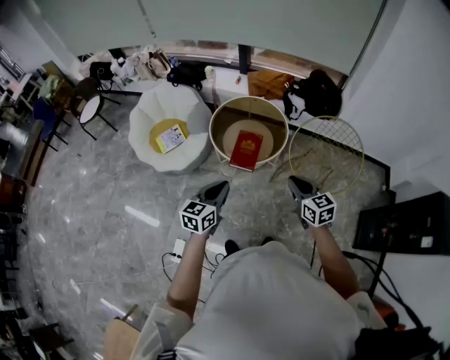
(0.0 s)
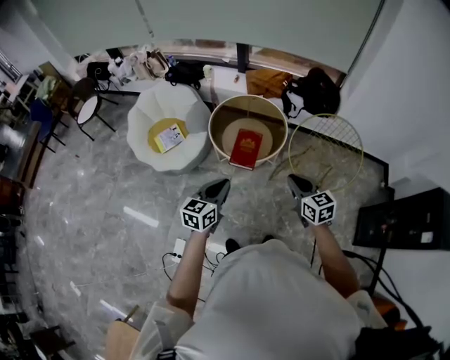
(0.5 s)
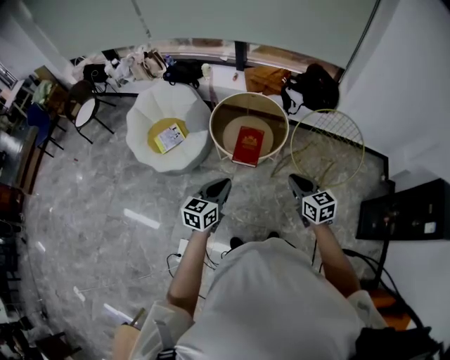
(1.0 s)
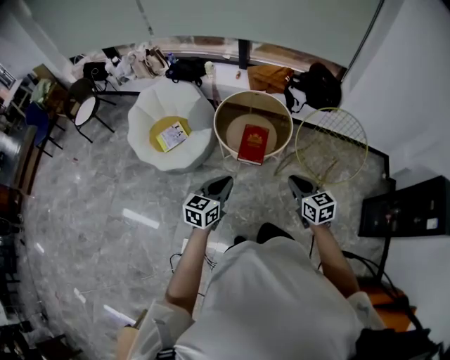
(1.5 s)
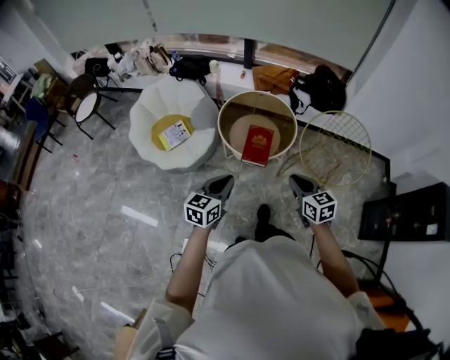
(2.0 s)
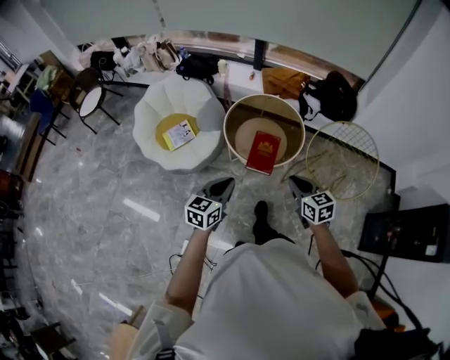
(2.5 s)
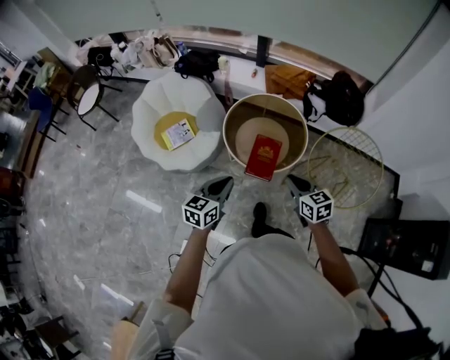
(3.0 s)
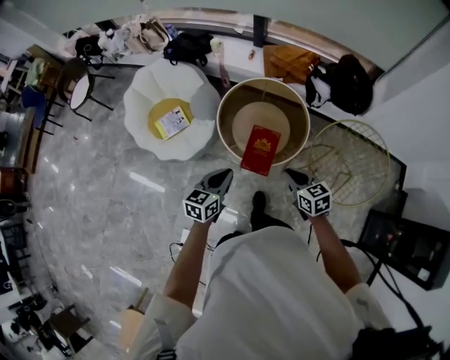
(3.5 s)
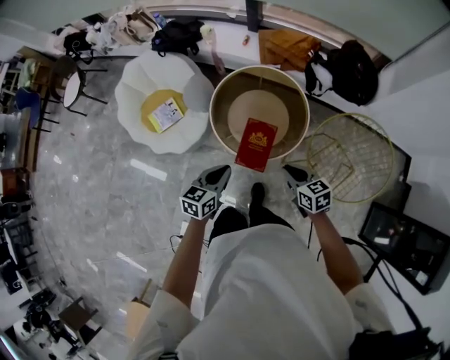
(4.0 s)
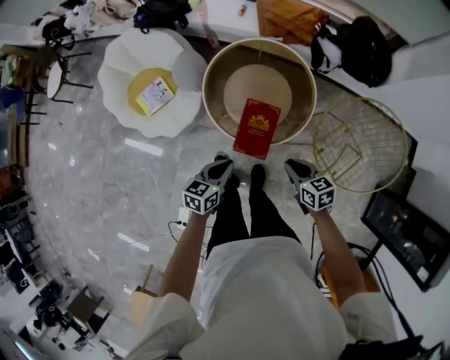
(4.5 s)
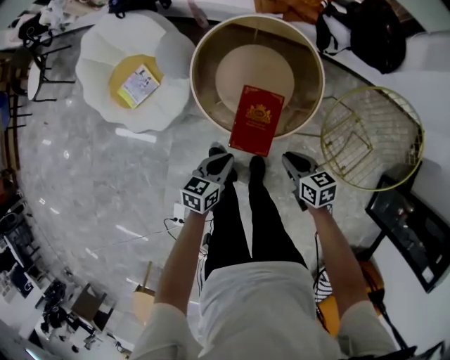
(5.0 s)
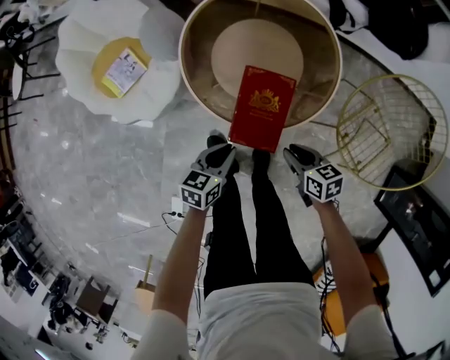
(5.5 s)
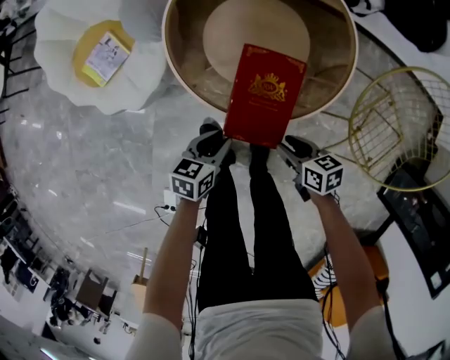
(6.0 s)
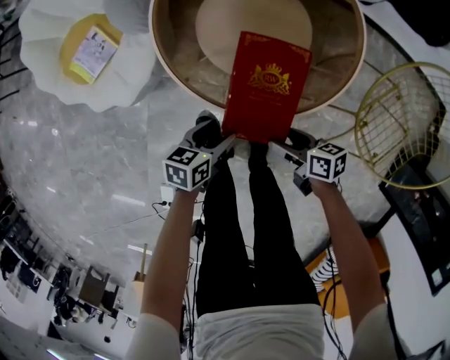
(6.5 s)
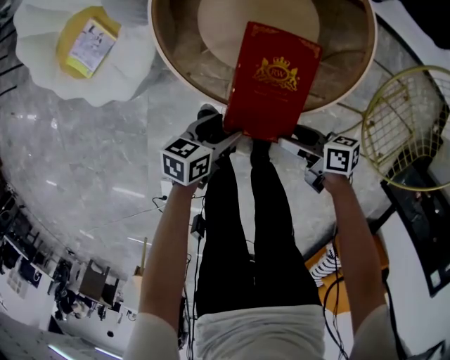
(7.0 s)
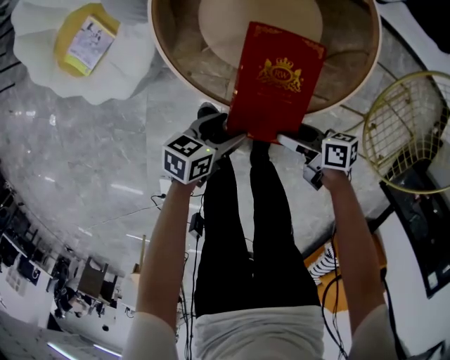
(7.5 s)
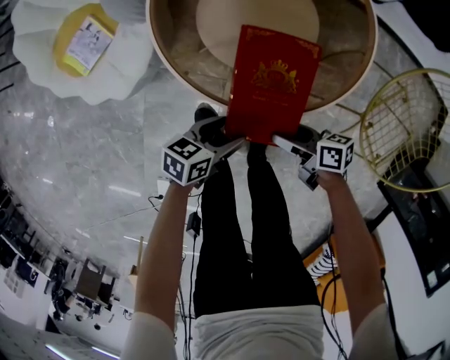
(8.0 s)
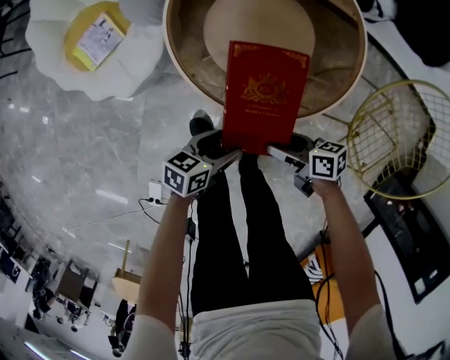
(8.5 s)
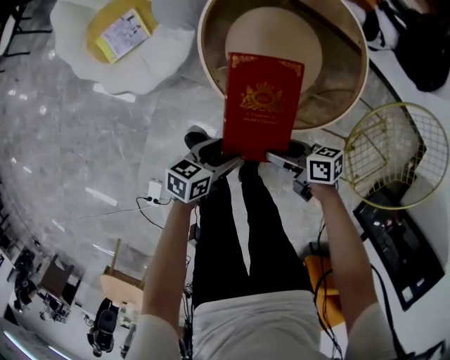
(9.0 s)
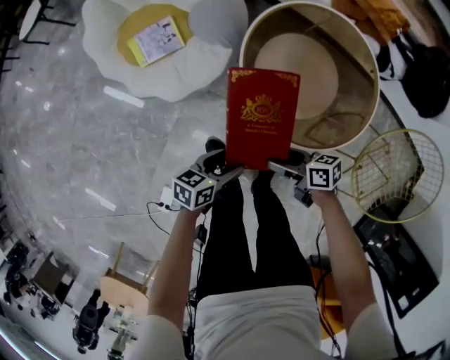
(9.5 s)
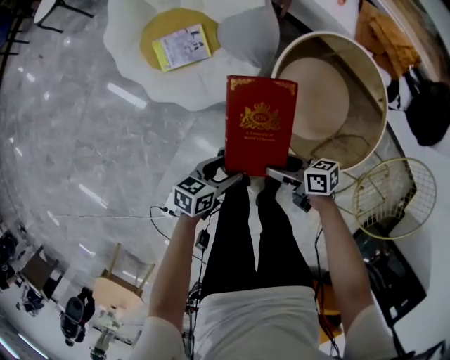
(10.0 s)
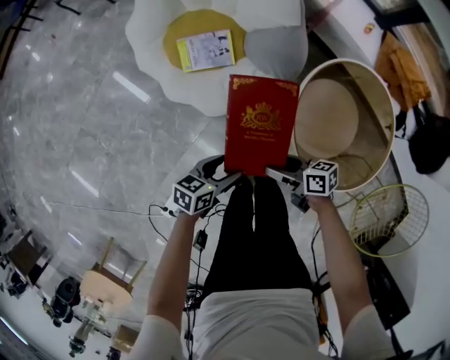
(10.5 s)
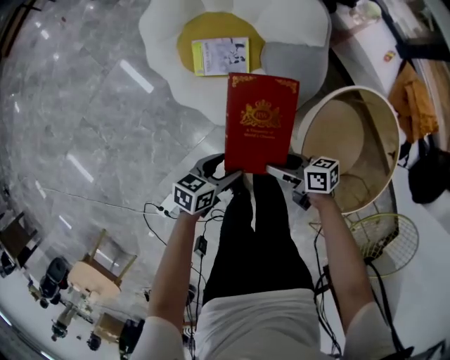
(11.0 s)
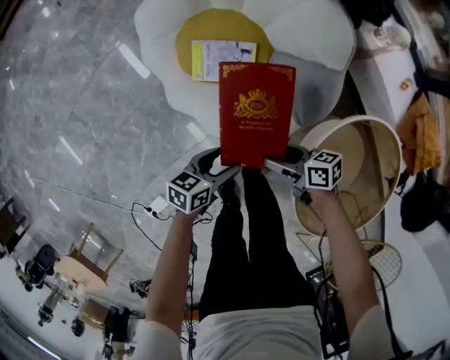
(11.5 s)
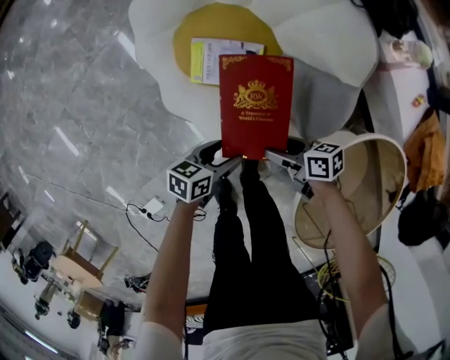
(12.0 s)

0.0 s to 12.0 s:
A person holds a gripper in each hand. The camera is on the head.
0.0 to 2.0 s: Both grippers travel together to the left, about 10 cm.
2.0 to 4.0 s: Both grippers travel together forward and downward, approximately 30 cm. The right gripper turns by about 20 degrees.
4.0 to 6.0 s: Both grippers move downward, some 40 cm. The left gripper turns by approximately 20 degrees, and opens; the right gripper swivels roughly 20 degrees, and opens up.
6.0 to 8.0 s: The left gripper changes place by about 5 cm, and opens, while the right gripper swivels roughly 20 degrees, and opens its fingers.
8.0 to 10.0 s: The left gripper shifts by approximately 30 cm, and swivels roughly 20 degrees, while the right gripper ends up some 30 cm from where it was, and changes its angle by some 30 degrees.
10.0 to 12.0 s: The right gripper shifts by roughly 35 cm, and changes its angle by some 20 degrees; the left gripper shifts by approximately 30 cm, and swivels about 20 degrees.

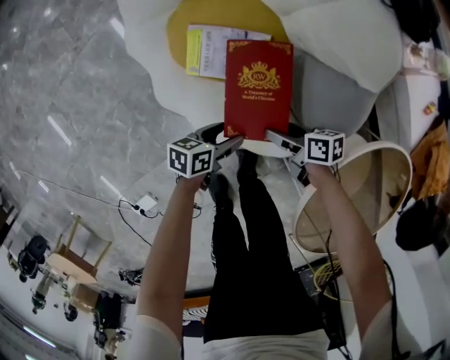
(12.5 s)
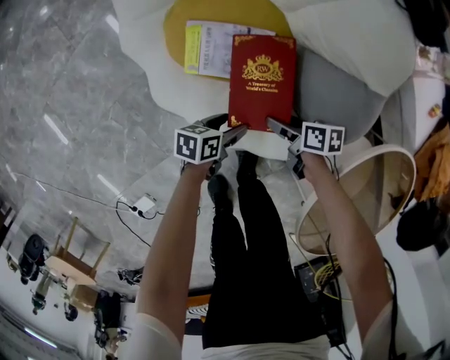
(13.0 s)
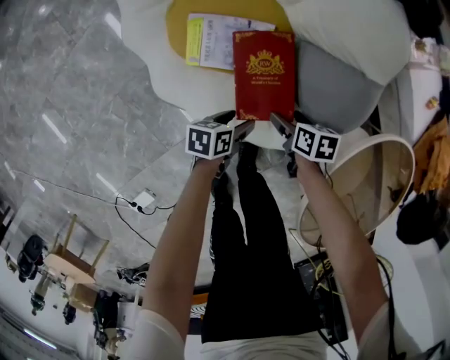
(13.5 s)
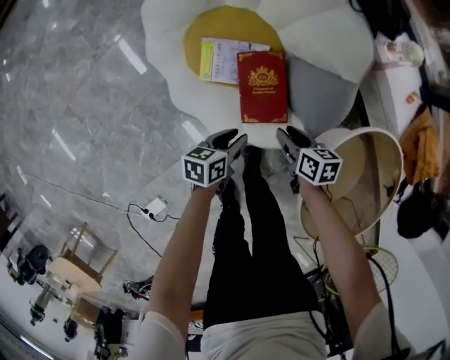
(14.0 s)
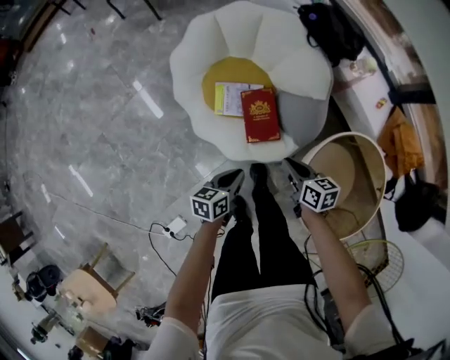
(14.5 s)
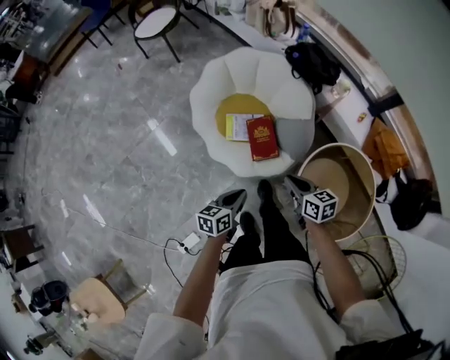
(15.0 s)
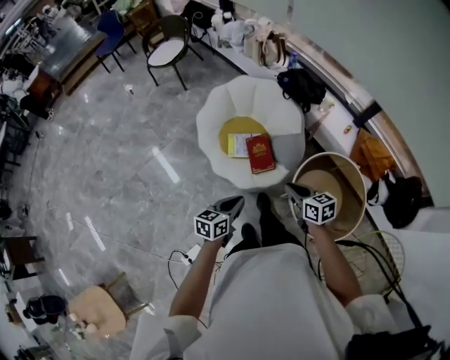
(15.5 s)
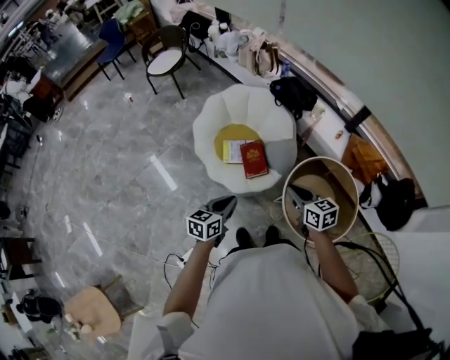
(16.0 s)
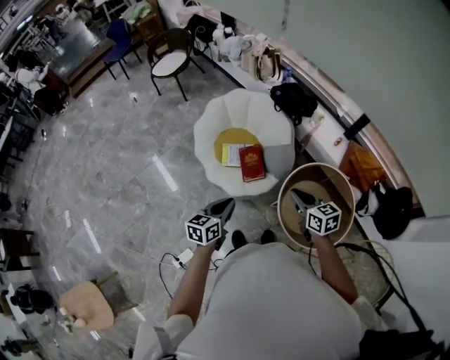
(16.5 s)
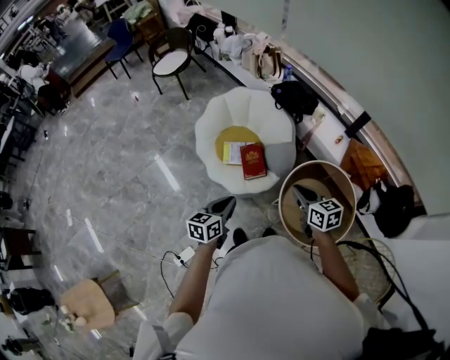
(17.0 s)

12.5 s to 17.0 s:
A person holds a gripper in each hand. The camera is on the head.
12.5 to 14.5 s: Both grippers move upward, some 30 cm. The right gripper turns by roughly 30 degrees, and closes up. The left gripper closes.
14.5 to 17.0 s: Both grippers move upward and backward, approximately 40 cm. The left gripper swivels some 20 degrees, while the right gripper turns by some 20 degrees.

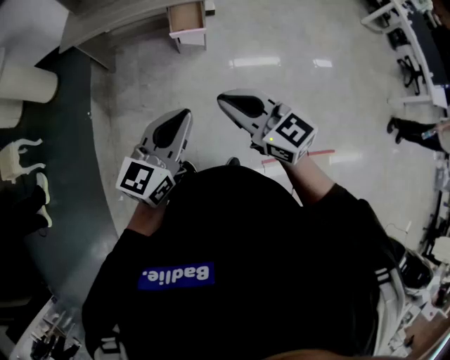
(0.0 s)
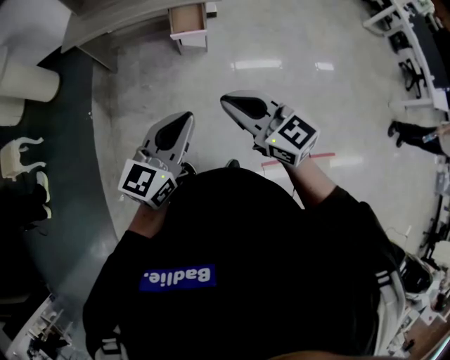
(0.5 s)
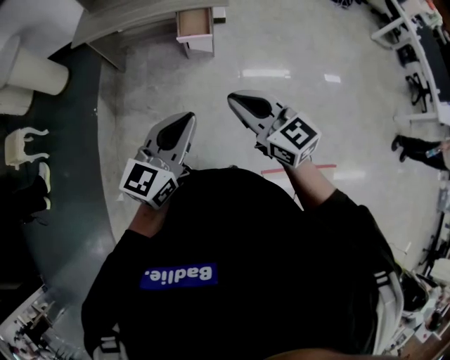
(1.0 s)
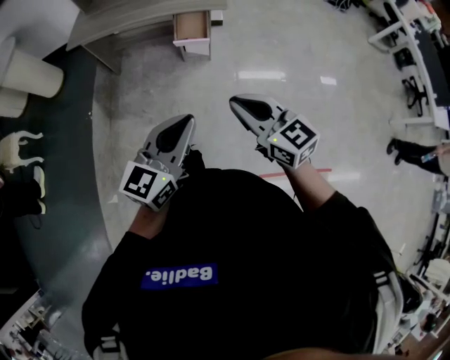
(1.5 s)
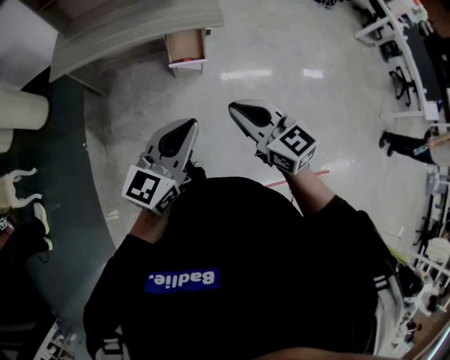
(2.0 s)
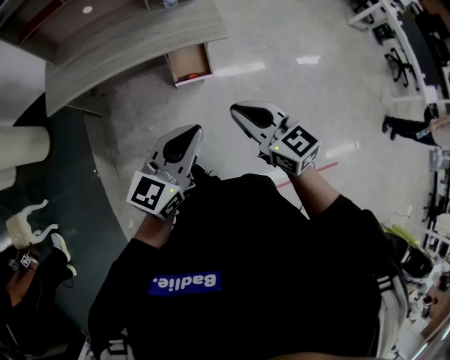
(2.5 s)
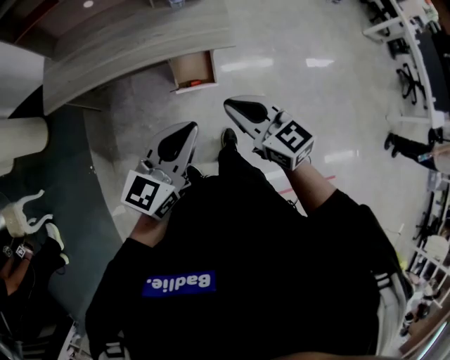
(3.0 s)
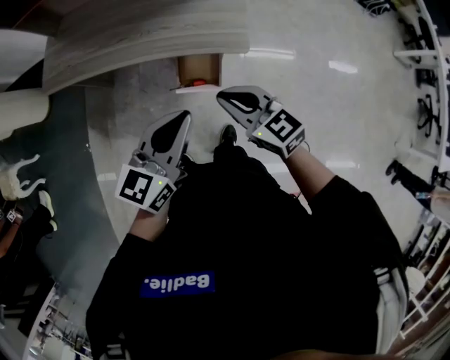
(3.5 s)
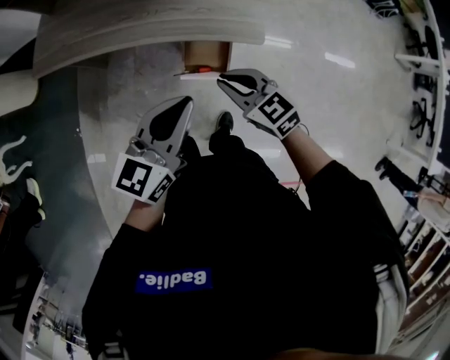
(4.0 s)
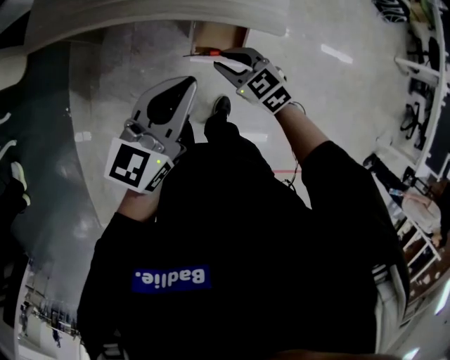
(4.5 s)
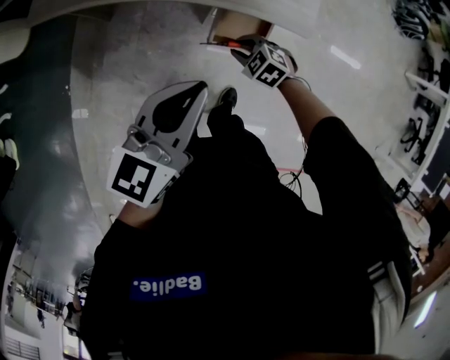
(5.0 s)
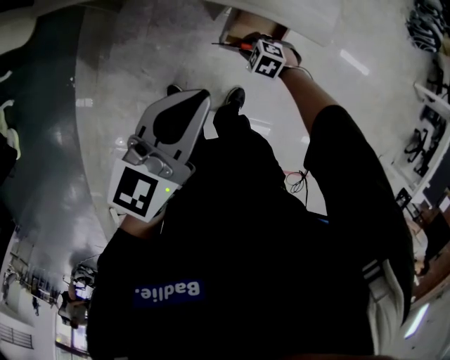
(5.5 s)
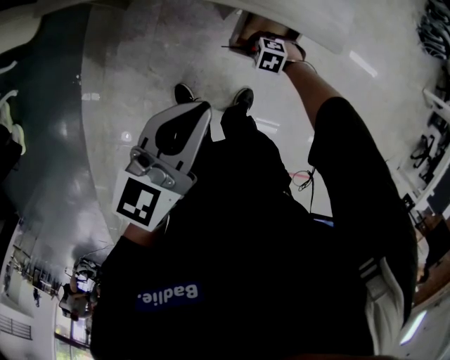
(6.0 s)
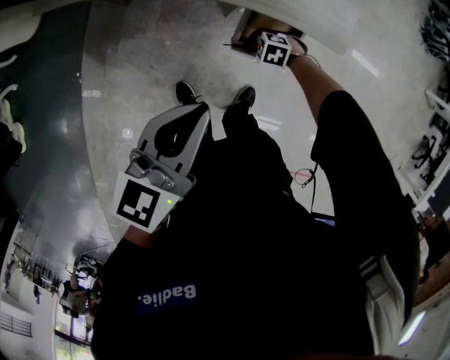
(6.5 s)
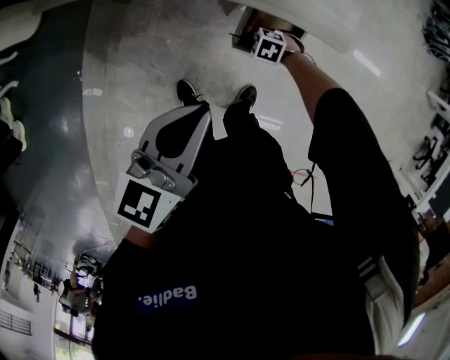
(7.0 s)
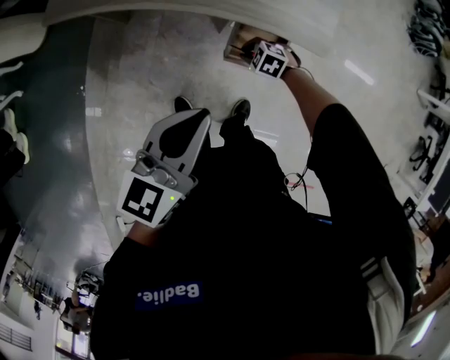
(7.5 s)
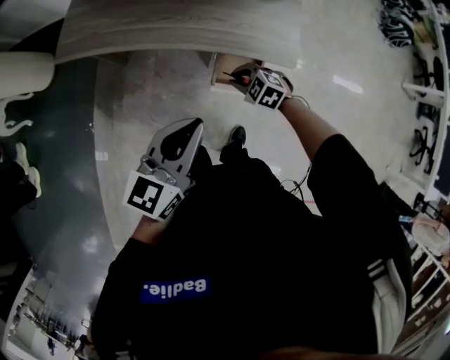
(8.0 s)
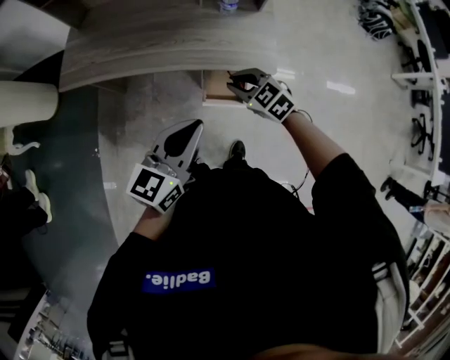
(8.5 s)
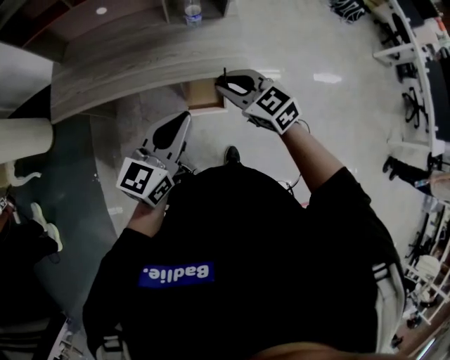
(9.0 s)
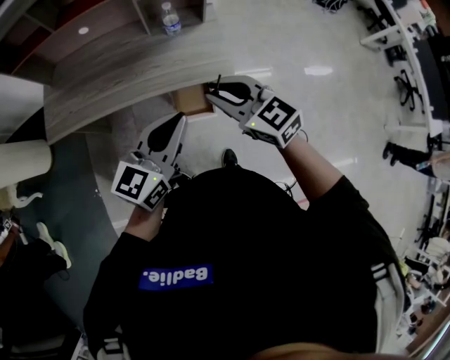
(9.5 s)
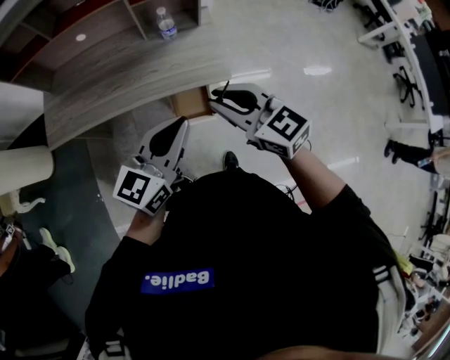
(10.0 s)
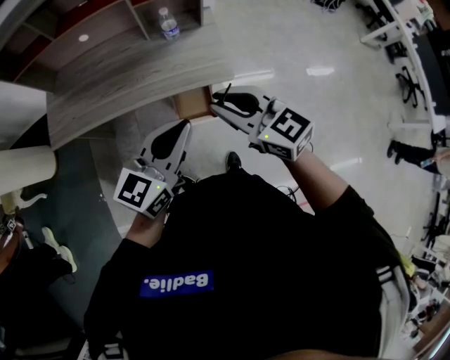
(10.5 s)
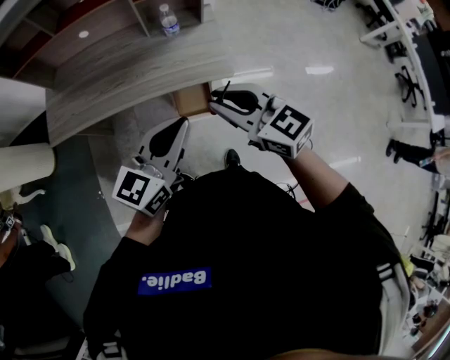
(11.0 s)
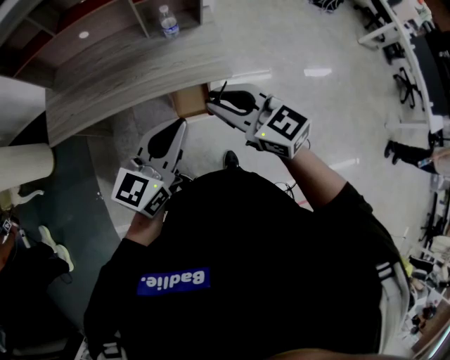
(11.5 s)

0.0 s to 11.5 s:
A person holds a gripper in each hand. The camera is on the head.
0.0 to 2.0 s: Both grippers travel together forward, roughly 15 cm.
2.0 to 4.0 s: The left gripper goes approximately 30 cm forward. Meanwhile the right gripper is displaced forward and downward by roughly 35 cm, and swivels about 30 degrees.
4.0 to 6.0 s: The left gripper moves roughly 15 cm. Meanwhile the right gripper travels downward by about 35 cm, tips its fingers downward by some 40 degrees, and opens up.
6.0 to 7.5 s: The right gripper moves about 5 cm.
7.5 to 9.5 s: The left gripper is displaced upward by some 10 cm, and turns by about 20 degrees; the right gripper goes some 50 cm upward, and angles its fingers upward, by roughly 50 degrees.
9.5 to 11.5 s: The grippers stay close to where they were, moving slightly.
